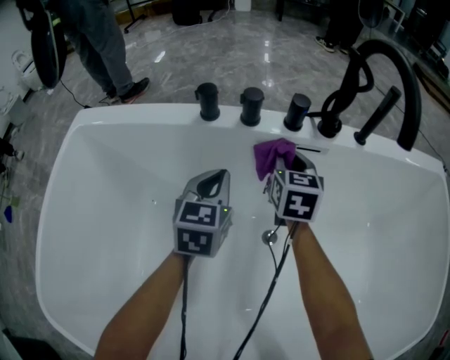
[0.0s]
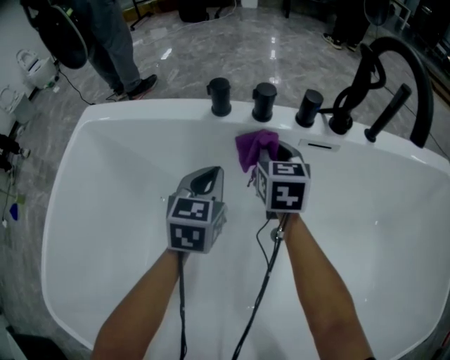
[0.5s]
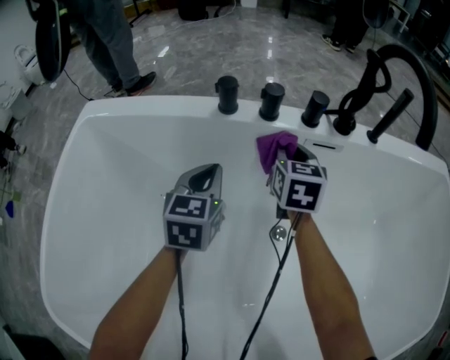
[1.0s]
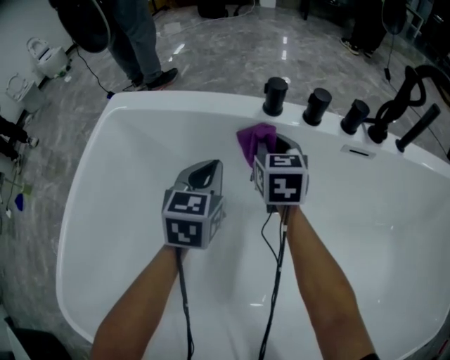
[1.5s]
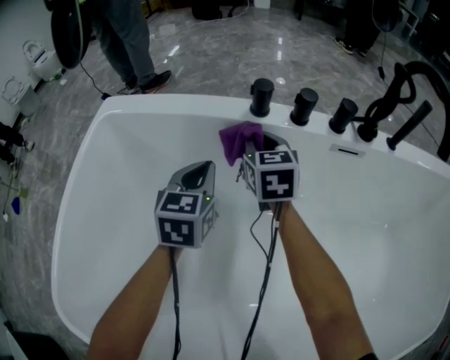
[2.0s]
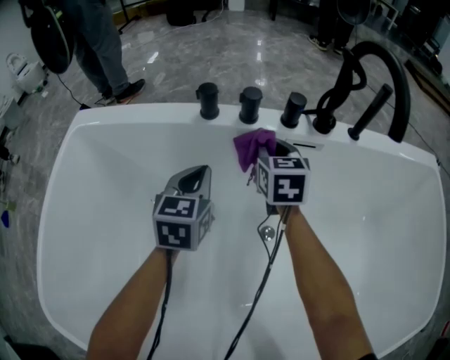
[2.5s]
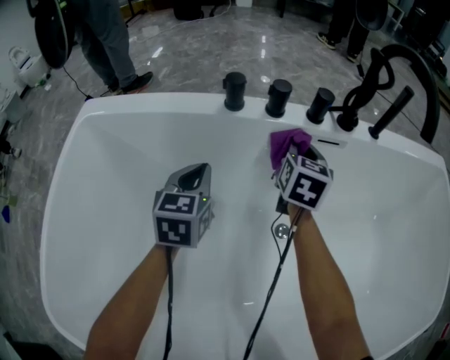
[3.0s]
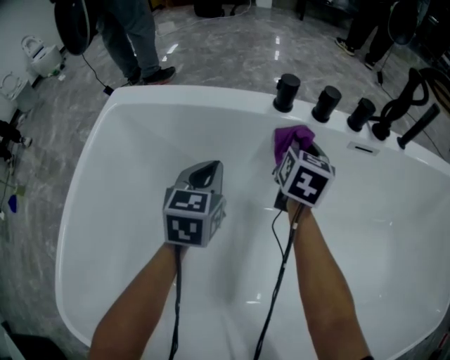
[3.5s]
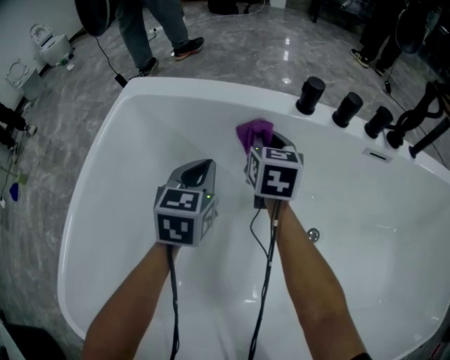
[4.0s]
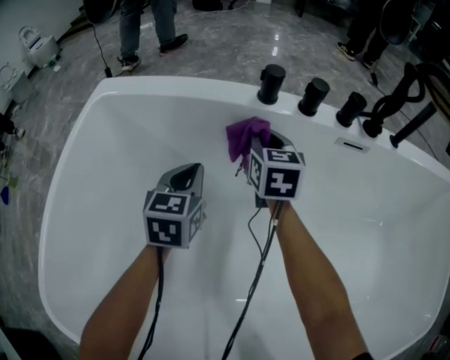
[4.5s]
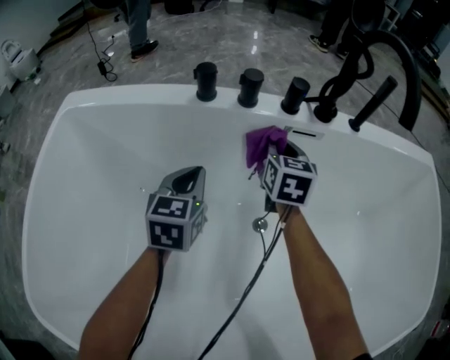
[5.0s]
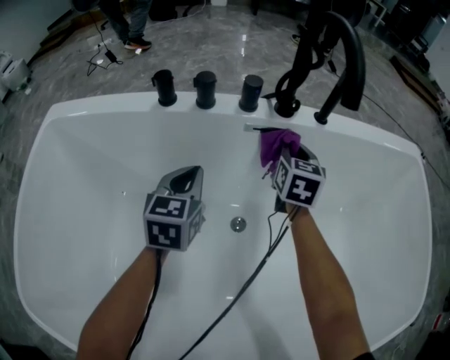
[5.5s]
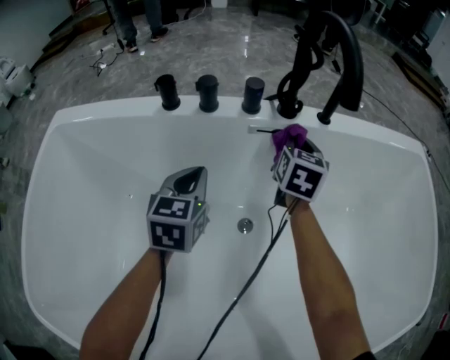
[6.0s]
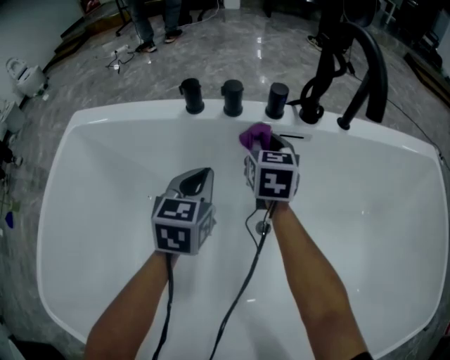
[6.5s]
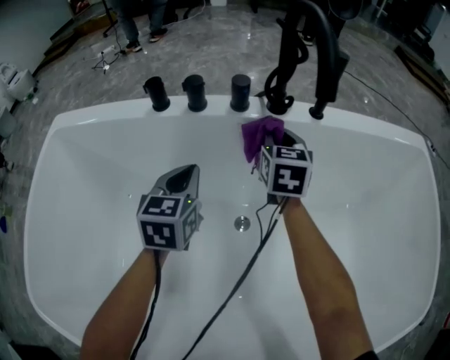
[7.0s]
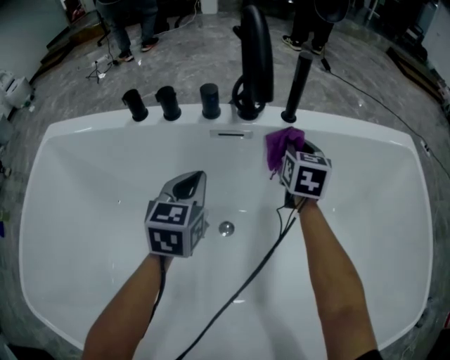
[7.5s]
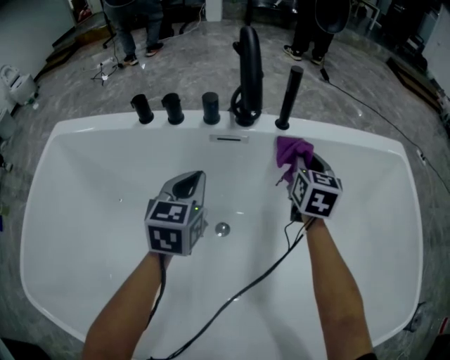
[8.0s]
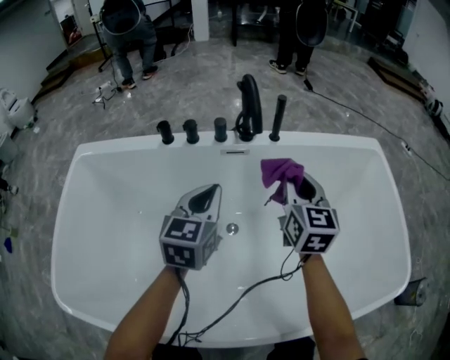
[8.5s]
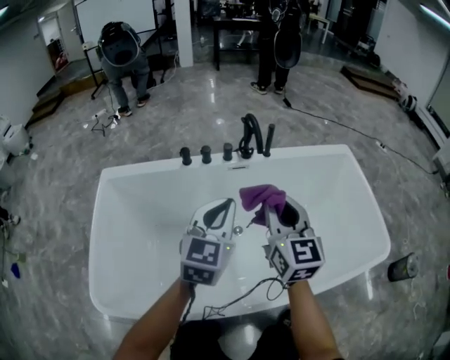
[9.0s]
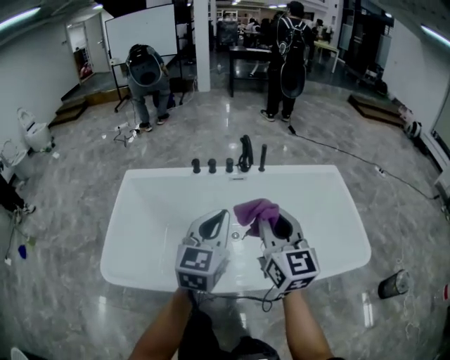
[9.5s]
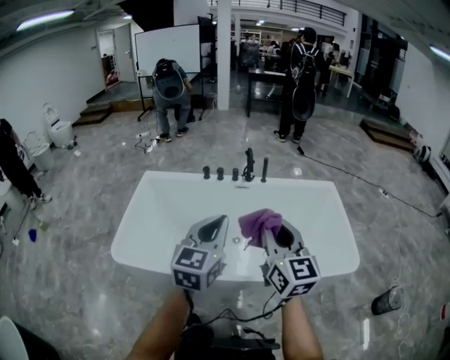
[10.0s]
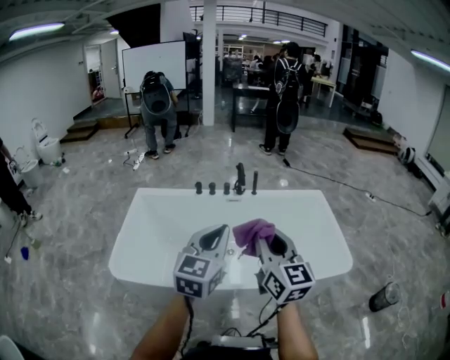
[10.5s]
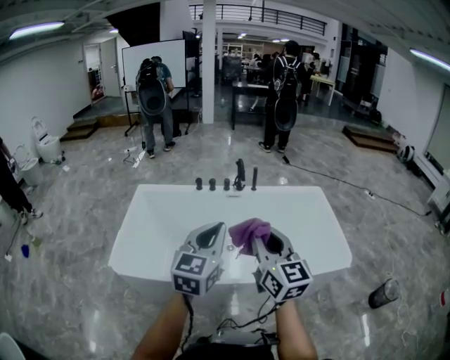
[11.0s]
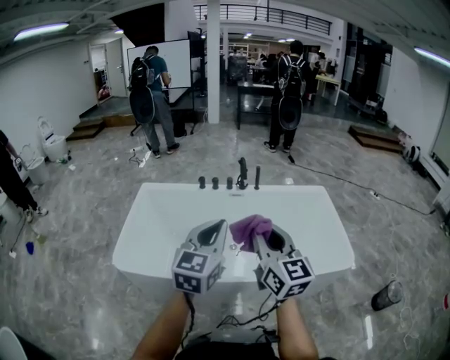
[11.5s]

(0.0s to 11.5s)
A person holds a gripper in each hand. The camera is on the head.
0.0s - 2.0s: The grippers both shift to the left by some 15 cm.
2.0s - 4.0s: Both grippers travel together to the left, about 10 cm.
4.0s - 6.0s: The grippers both shift to the right by about 35 cm. The right gripper changes its angle by some 20 degrees.
6.0s - 7.5s: Both grippers travel together to the right, roughly 10 cm.
7.5s - 9.5s: The pair of grippers is taken backward, roughly 50 cm. Both grippers move upward, roughly 50 cm. The right gripper changes its angle by some 30 degrees, while the left gripper changes its angle by roughly 20 degrees.
9.5s - 11.5s: The two grippers go some 20 cm backward and upward.

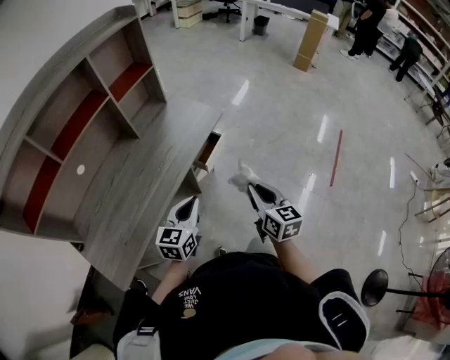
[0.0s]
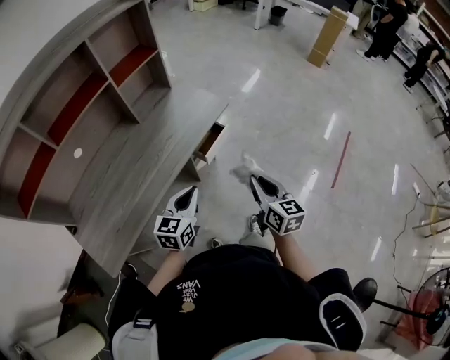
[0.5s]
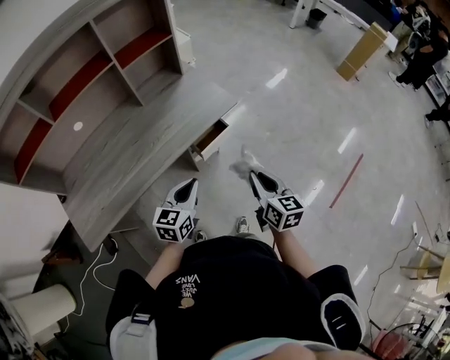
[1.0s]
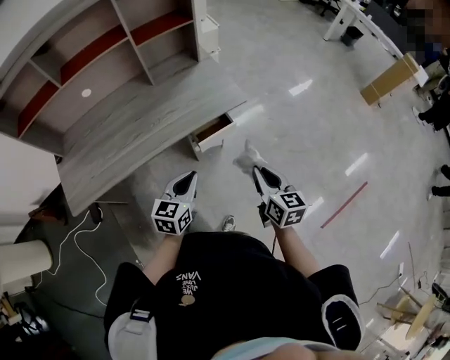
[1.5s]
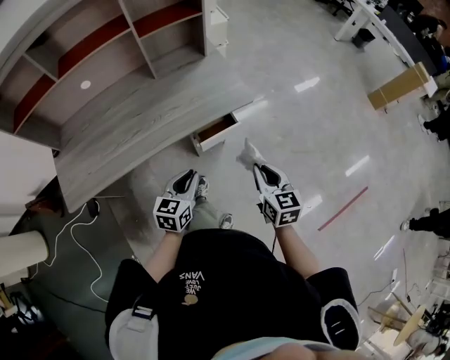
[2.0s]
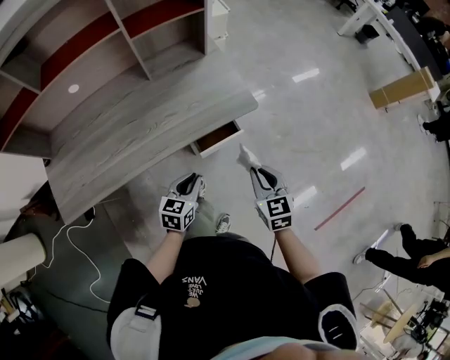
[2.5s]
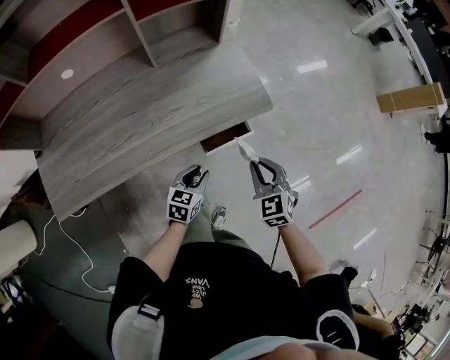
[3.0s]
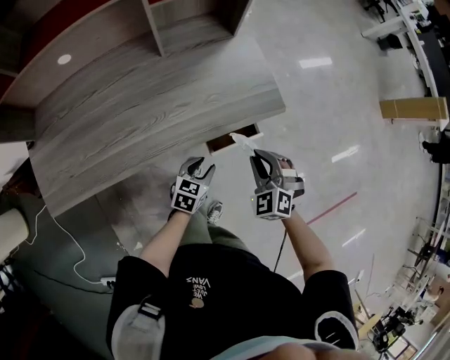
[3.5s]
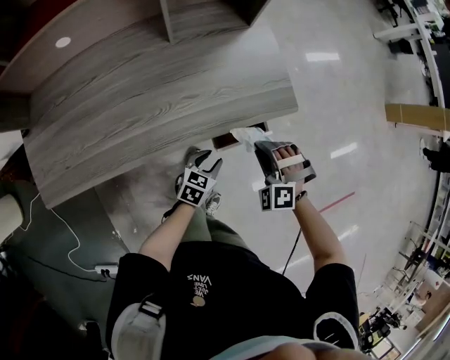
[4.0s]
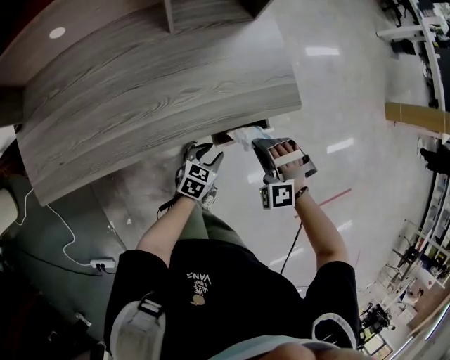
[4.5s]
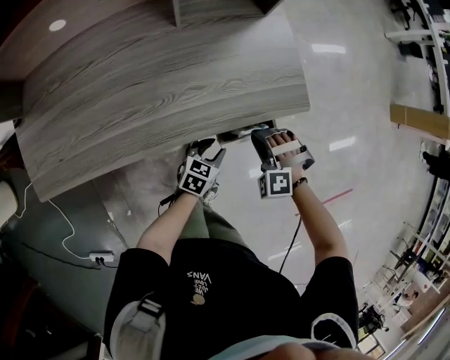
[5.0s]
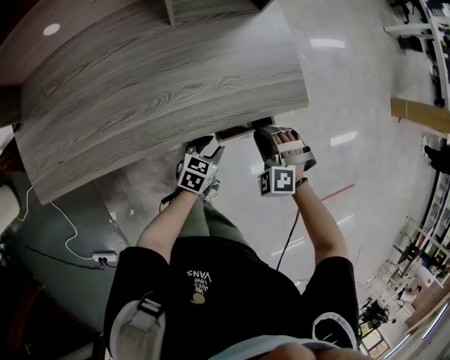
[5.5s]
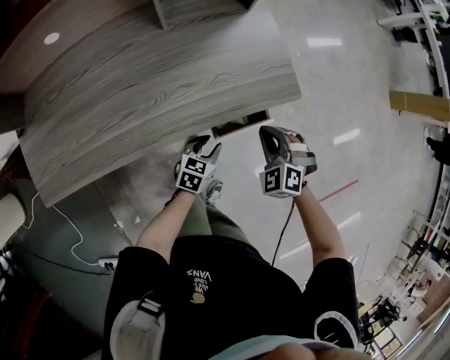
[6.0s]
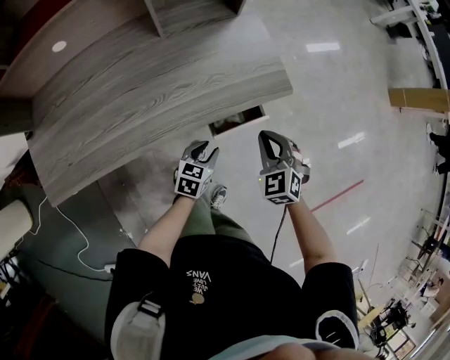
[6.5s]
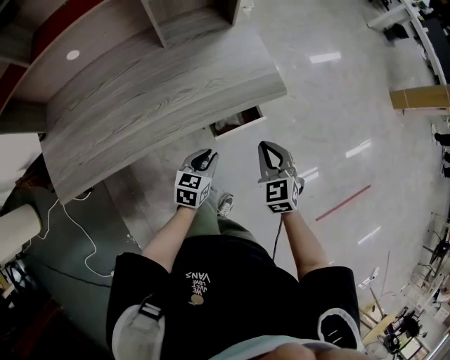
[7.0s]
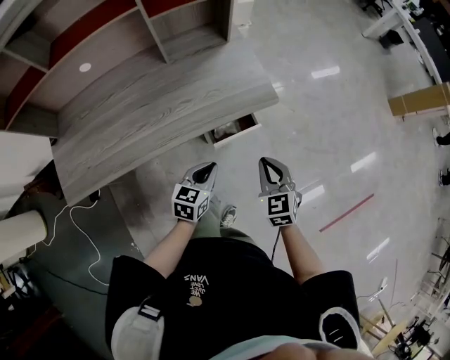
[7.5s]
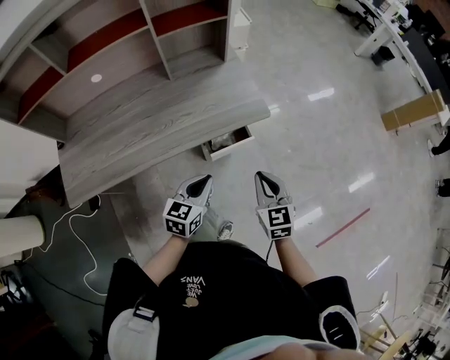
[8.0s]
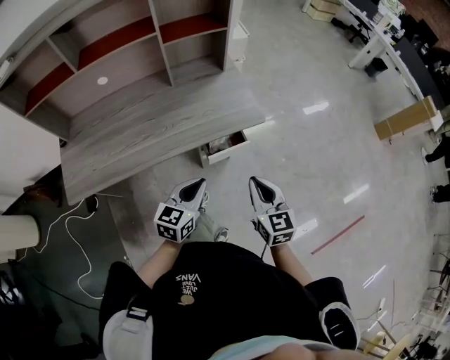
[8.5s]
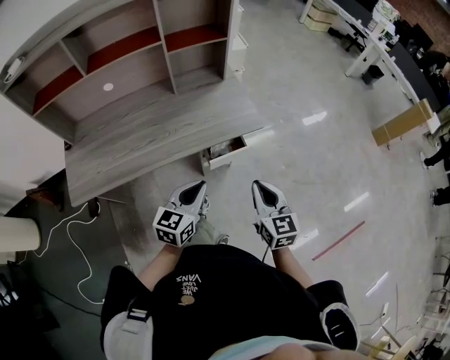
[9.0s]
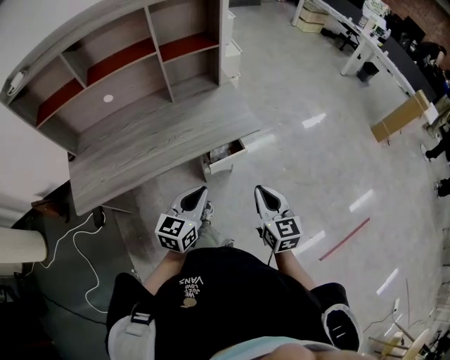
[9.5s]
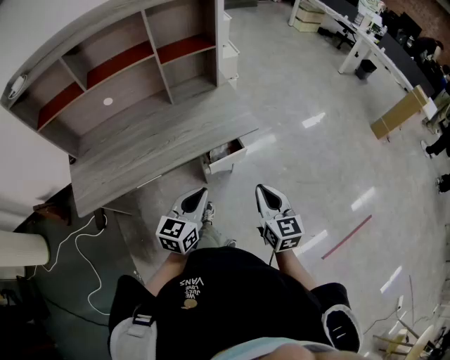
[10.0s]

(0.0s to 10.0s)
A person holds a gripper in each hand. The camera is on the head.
0.0s - 2.0s: The left gripper ends up about 15 cm from where it was, and changes its angle by approximately 30 degrees. The right gripper ends up roughly 20 cm from where it was, and rotates roughly 30 degrees.
2.0s - 4.0s: The left gripper travels downward and forward by about 25 cm, swivels approximately 20 degrees, and opens its fingers. The right gripper moves downward, forward and to the left, some 25 cm, and rotates around the line of its fingers by approximately 90 degrees, counterclockwise from behind.
4.0s - 6.0s: The right gripper rotates about 20 degrees.
6.0s - 8.0s: The right gripper heads upward, backward and to the right, covering approximately 20 cm, and twists approximately 50 degrees clockwise, seen from behind, while the left gripper moves upward and backward, about 25 cm, rotates roughly 20 degrees, and closes up.
8.0s - 10.0s: The grippers both shift upward and backward by some 10 cm.

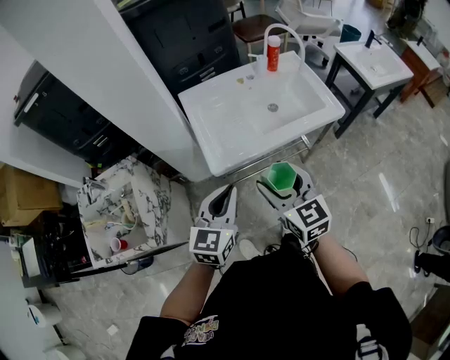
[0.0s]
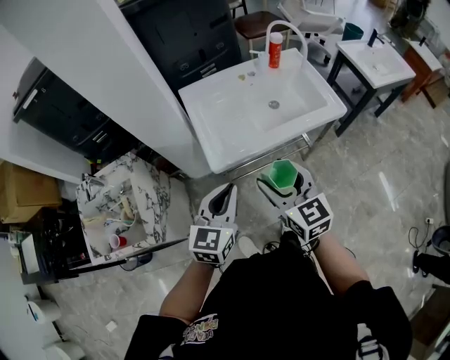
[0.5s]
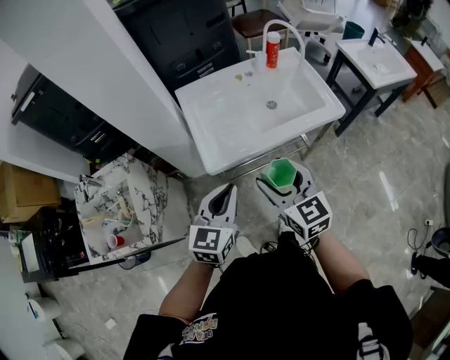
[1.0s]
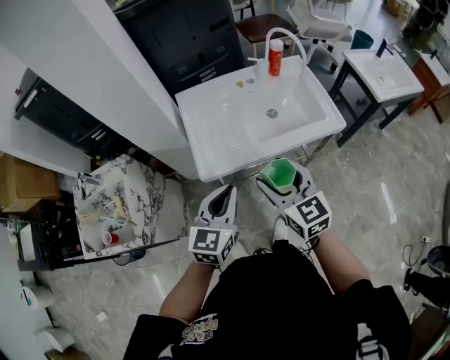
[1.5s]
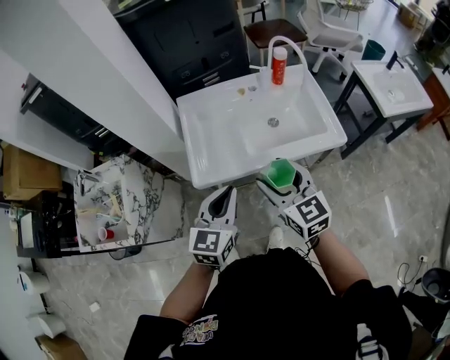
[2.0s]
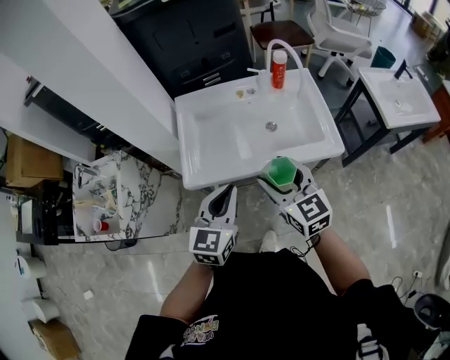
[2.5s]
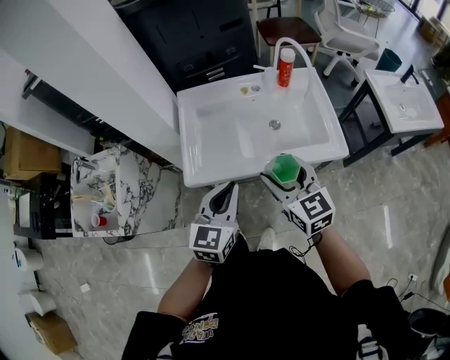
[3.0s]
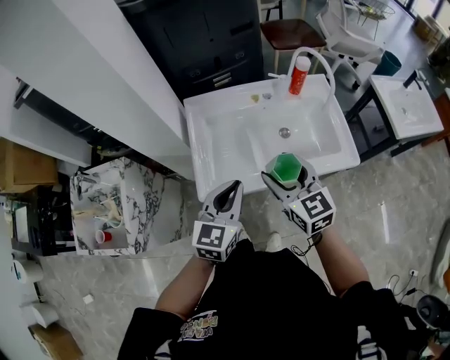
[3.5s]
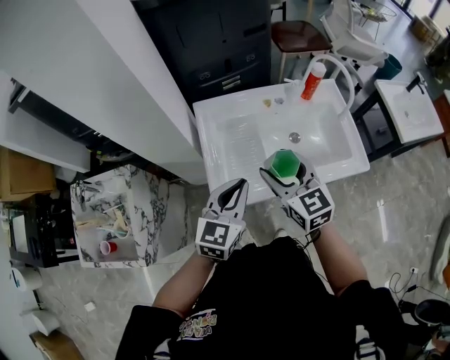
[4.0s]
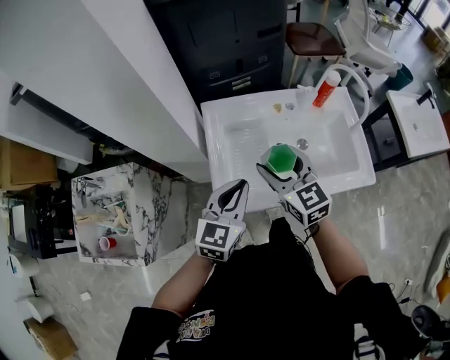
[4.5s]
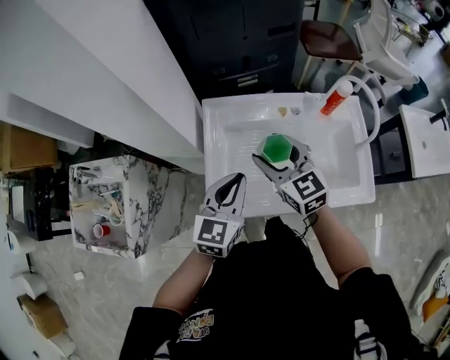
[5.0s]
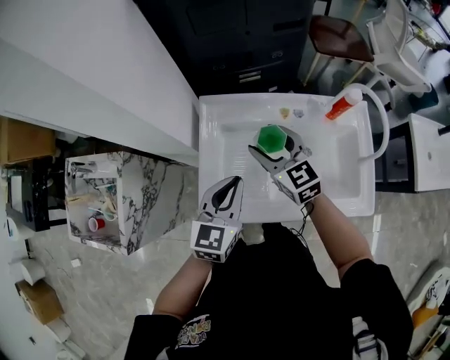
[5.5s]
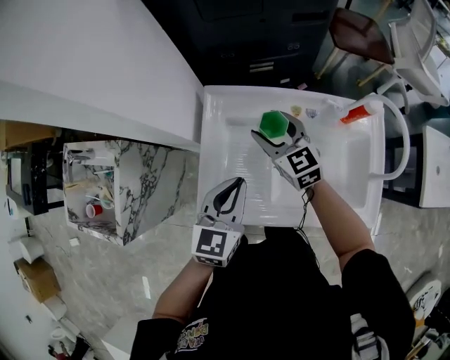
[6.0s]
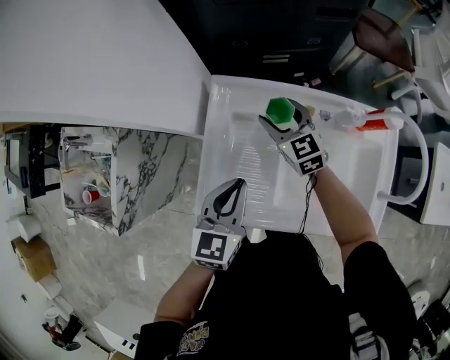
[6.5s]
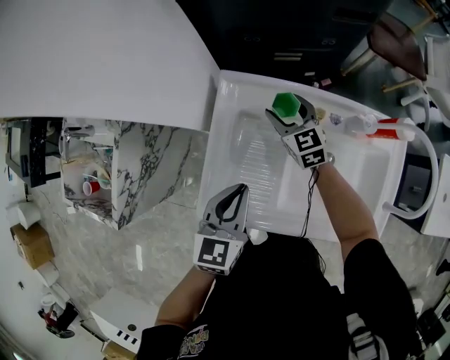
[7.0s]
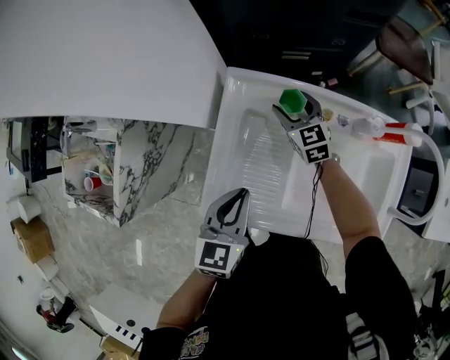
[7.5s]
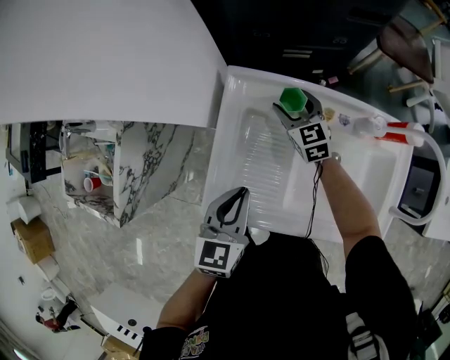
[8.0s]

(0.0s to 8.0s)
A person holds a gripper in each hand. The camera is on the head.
0.0s - 2.0s: Both grippers travel together to the right and forward, about 10 cm.
2.0s - 4.0s: The left gripper heads forward, covering approximately 15 cm, while the right gripper is displaced forward and to the left by some 15 cm.
4.0s - 6.0s: The left gripper is displaced forward by about 10 cm, and swivels approximately 20 degrees; the right gripper goes approximately 25 cm forward and downward, and swivels some 20 degrees.
6.0s - 8.0s: The right gripper is displaced downward and forward by some 15 cm. The left gripper ends up some 5 cm from where it was.
